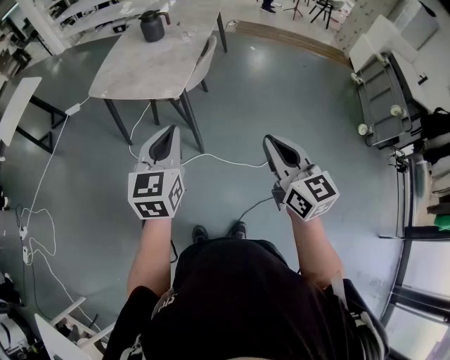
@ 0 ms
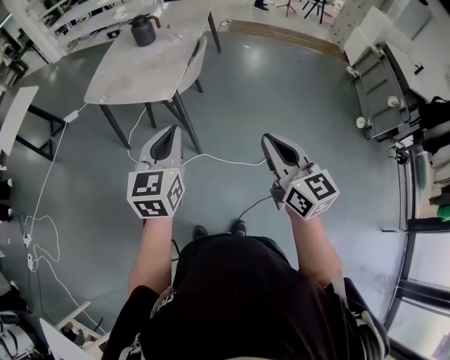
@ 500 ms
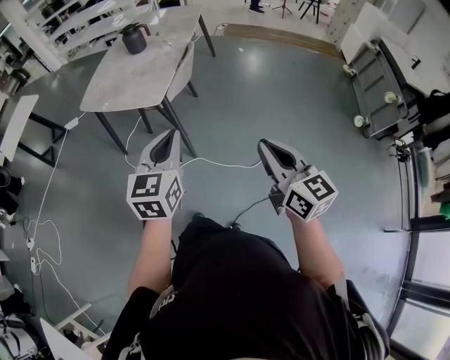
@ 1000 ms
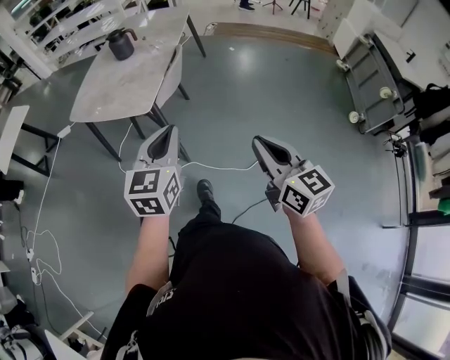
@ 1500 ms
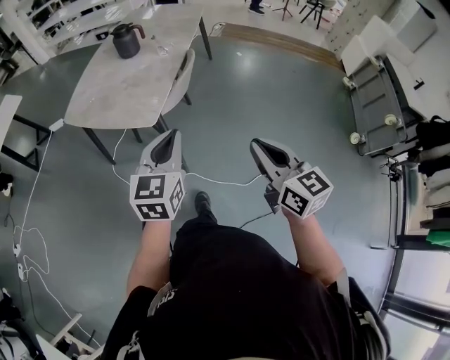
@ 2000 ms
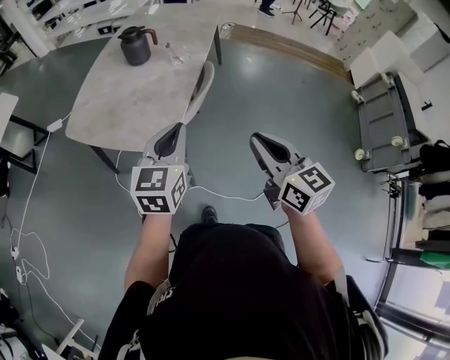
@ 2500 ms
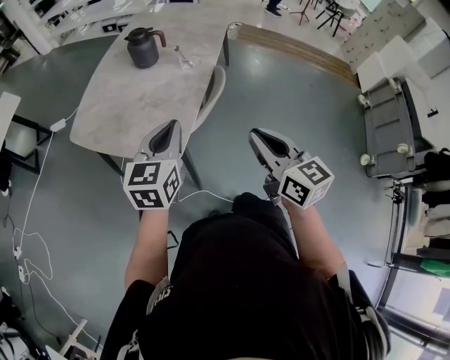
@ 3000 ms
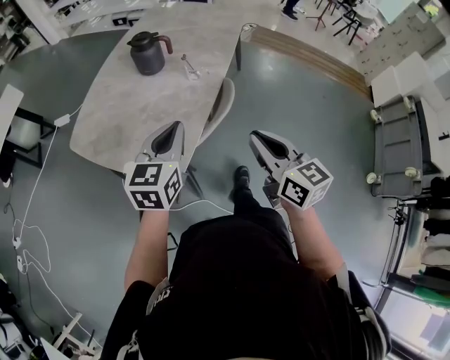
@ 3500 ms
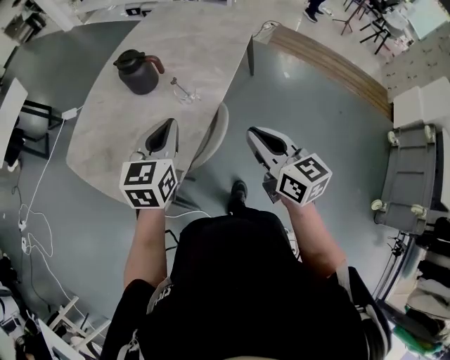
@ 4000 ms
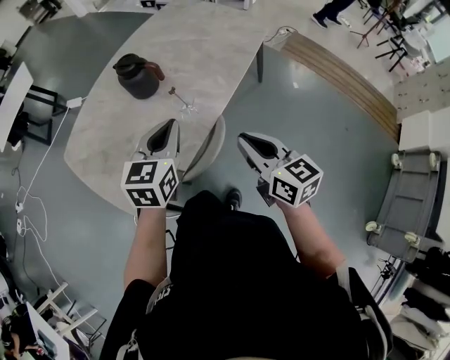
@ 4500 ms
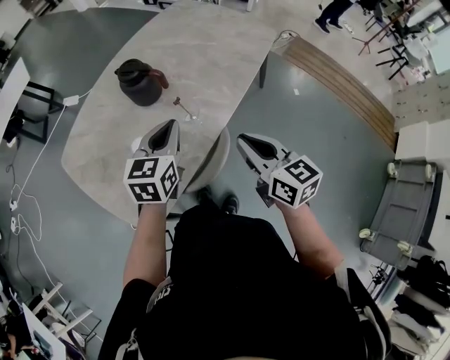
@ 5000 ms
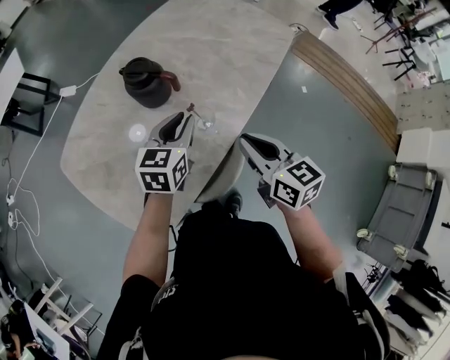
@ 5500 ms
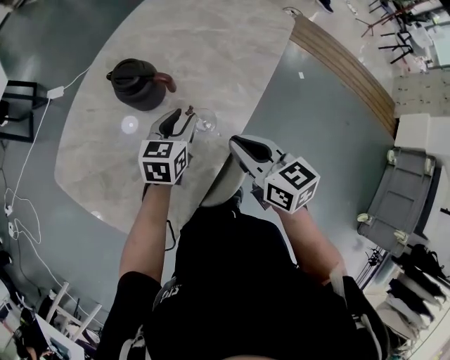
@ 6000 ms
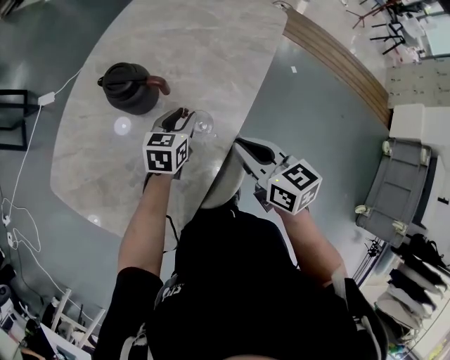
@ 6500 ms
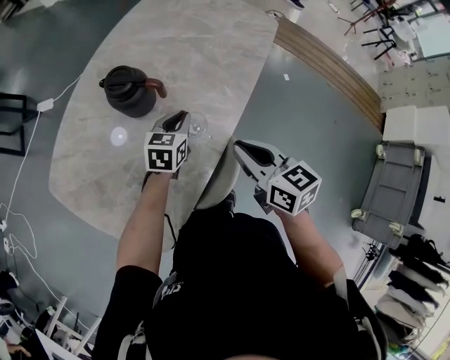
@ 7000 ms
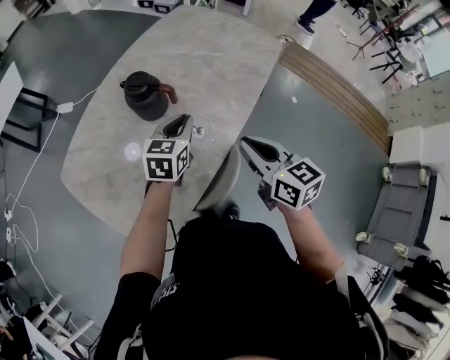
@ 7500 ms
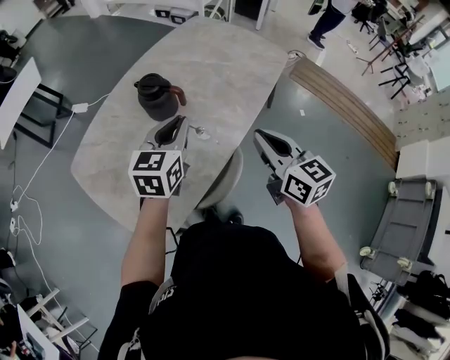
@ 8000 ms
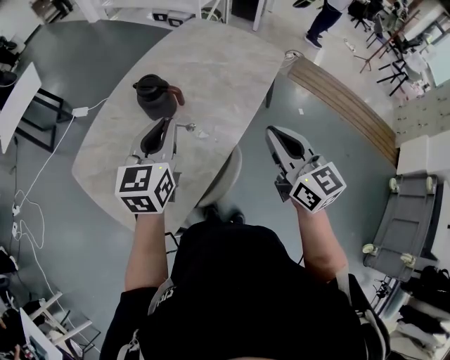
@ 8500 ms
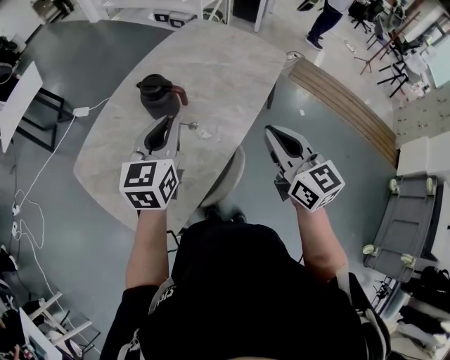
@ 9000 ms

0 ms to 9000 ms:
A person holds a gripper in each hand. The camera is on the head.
0 ms to 2000 ms: The two grippers go approximately 15 cm forward and to the right.
2000 ms to 4500 ms: Both grippers are carried forward, some 50 cm. The right gripper changes its angle by about 30 degrees. Meanwhile the left gripper turns by about 20 degrees.
4500 ms to 7000 ms: The right gripper goes some 15 cm forward and to the left. Meanwhile the left gripper heads forward and downward, covering some 25 cm, and opens, then closes again.
7000 ms to 9000 ms: The left gripper shifts some 25 cm upward and backward, and rotates roughly 30 degrees; the right gripper moves upward and to the right, approximately 15 cm, and swivels roughly 30 degrees.

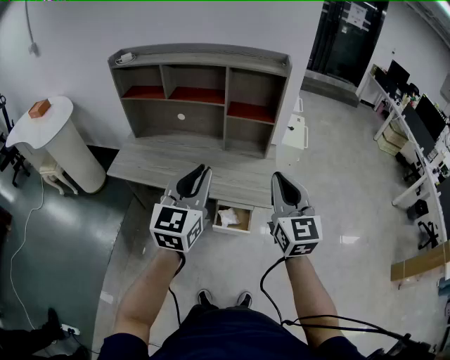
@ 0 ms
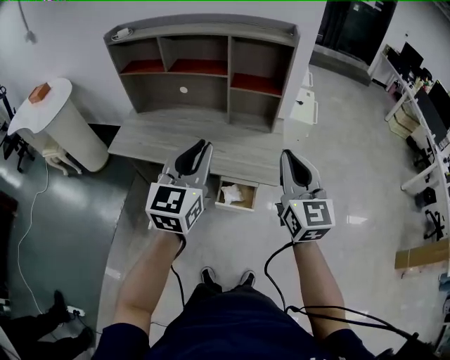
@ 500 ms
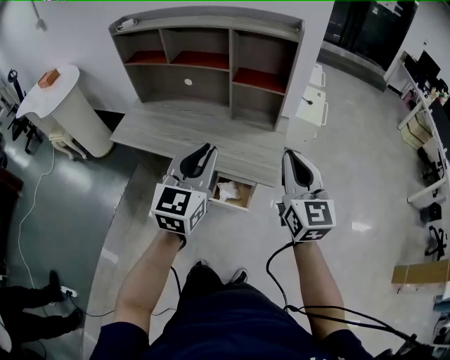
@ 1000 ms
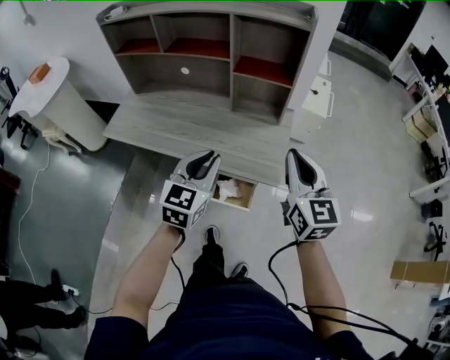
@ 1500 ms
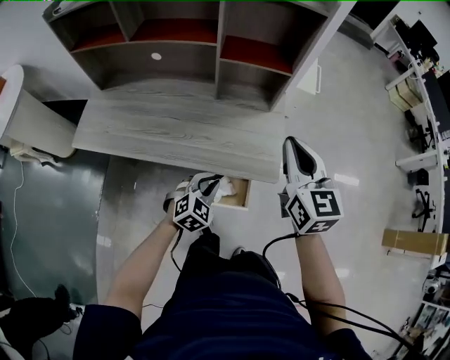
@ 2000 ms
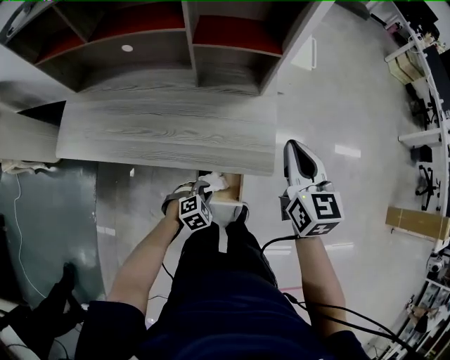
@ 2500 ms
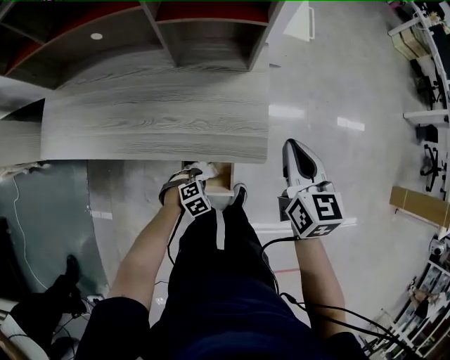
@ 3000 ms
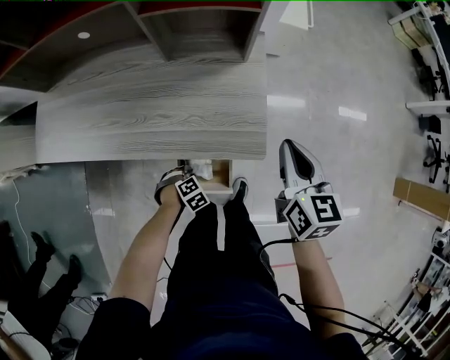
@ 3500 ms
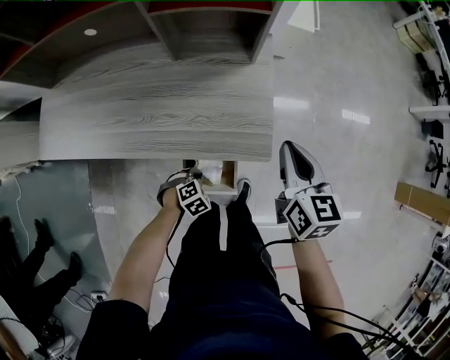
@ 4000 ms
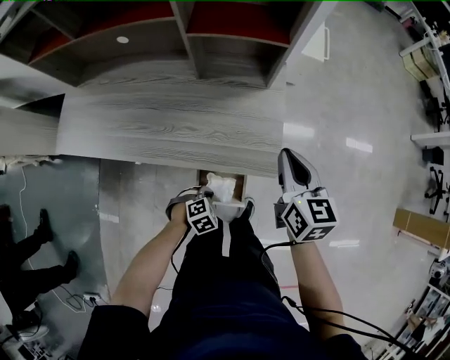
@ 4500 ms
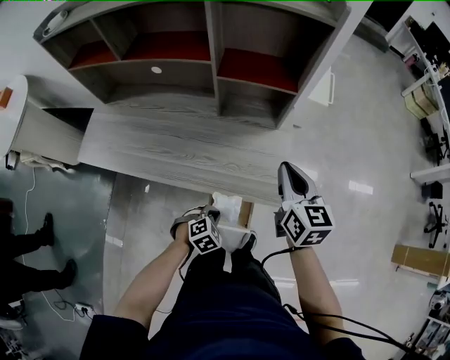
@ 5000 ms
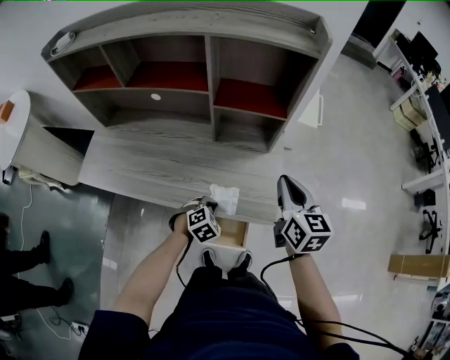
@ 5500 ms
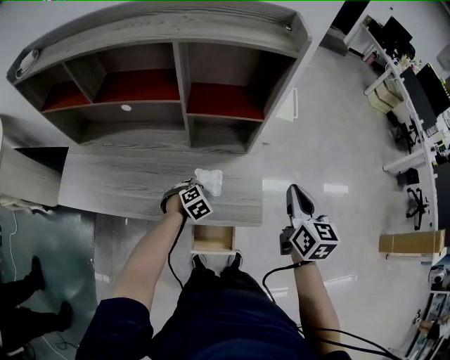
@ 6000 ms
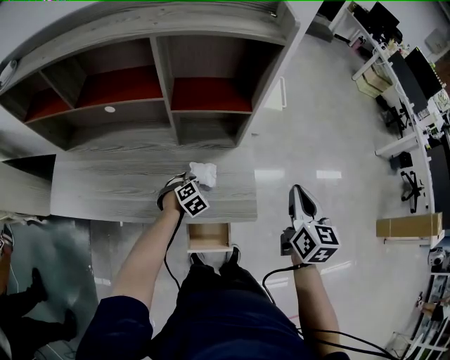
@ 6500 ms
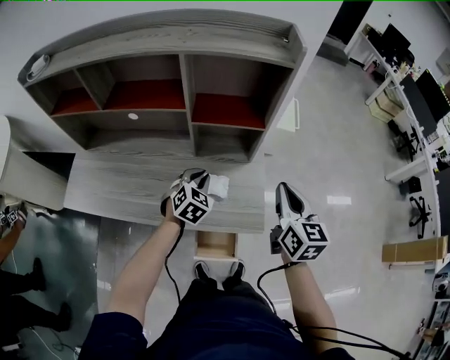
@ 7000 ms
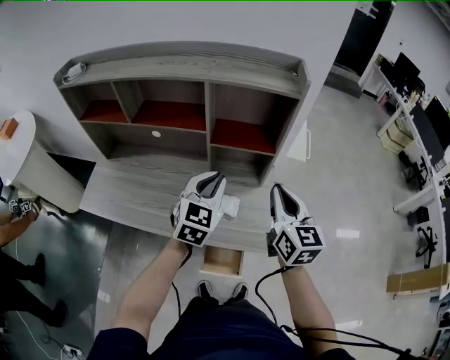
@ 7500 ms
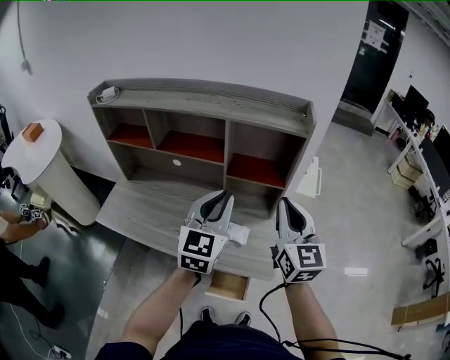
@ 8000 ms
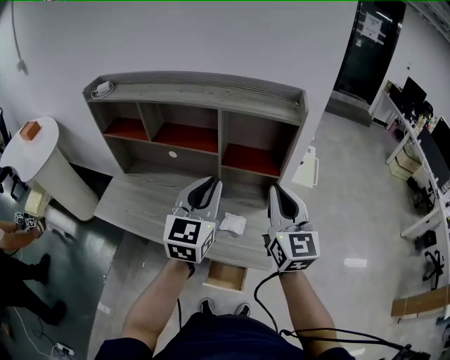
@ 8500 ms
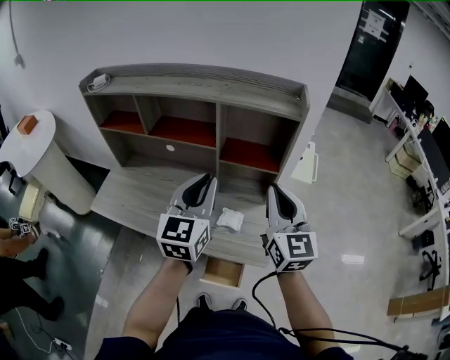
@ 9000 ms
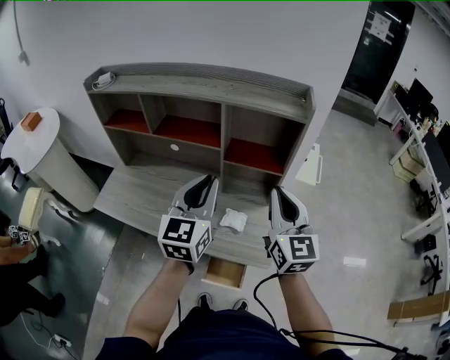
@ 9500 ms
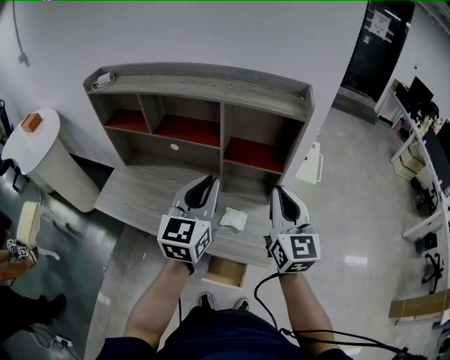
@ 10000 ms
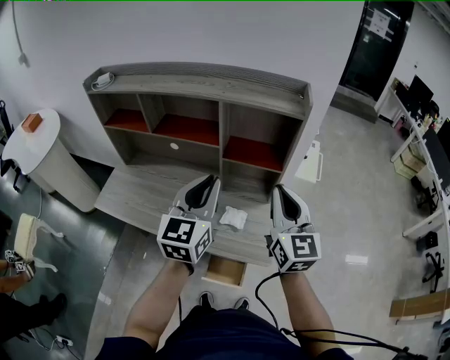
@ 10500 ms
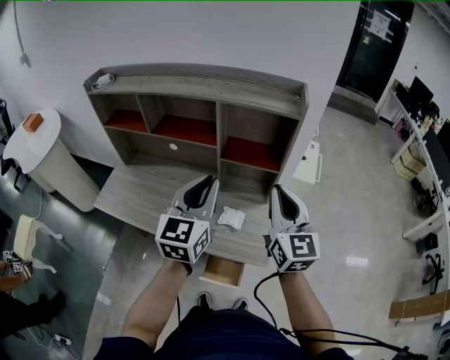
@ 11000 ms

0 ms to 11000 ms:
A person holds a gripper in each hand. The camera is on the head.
0 ms to 2000 ms: The left gripper travels downward by approximately 35 cm, and tilts its fingers about 40 degrees downward. The right gripper is displaced forward and downward by about 20 cm.
2000 ms to 3500 ms: The right gripper heads downward, covering approximately 15 cm, and turns by about 20 degrees. Meanwhile the left gripper goes roughly 25 cm downward, and points its fingers about 40 degrees further downward.
3500 ms to 5500 ms: The left gripper shifts roughly 20 cm upward, and turns by roughly 30 degrees. Meanwhile the right gripper travels upward by roughly 10 cm.
5500 ms to 7500 ms: The right gripper is displaced upward by about 10 cm, and reaches roughly 10 cm to the right, then returns. The left gripper goes approximately 30 cm upward, and tilts its fingers about 40 degrees upward.
7500 ms to 9000 ms: Both grippers travel together upward, about 10 cm. The left gripper rotates approximately 30 degrees.
9000 ms to 11000 ms: There are only small adjustments of the grippers.

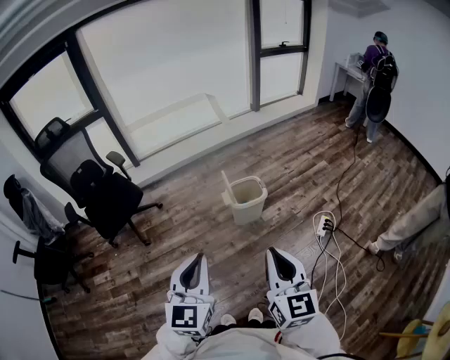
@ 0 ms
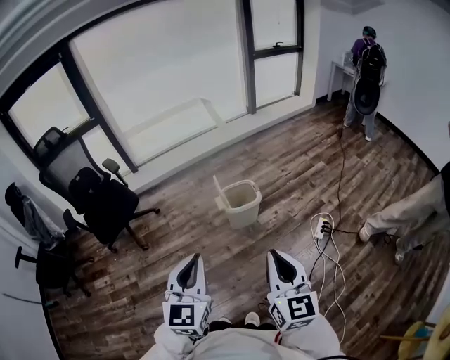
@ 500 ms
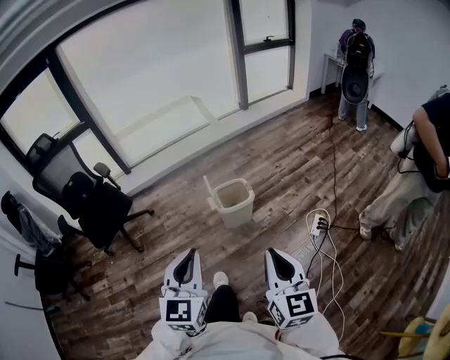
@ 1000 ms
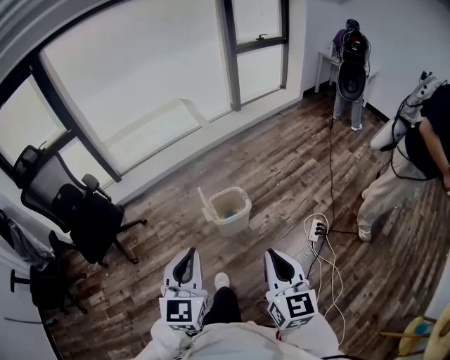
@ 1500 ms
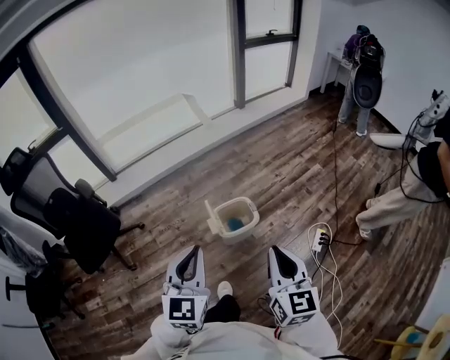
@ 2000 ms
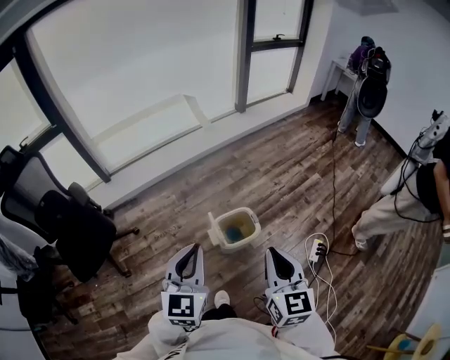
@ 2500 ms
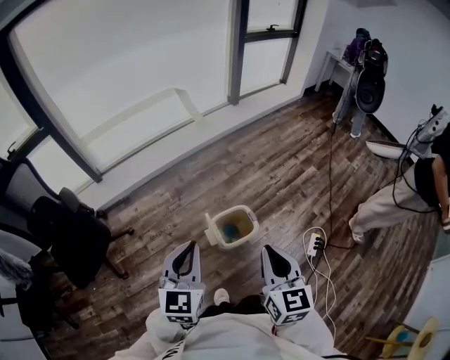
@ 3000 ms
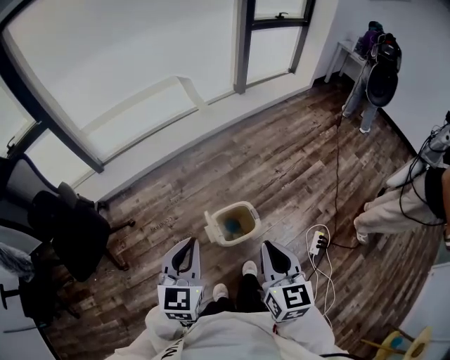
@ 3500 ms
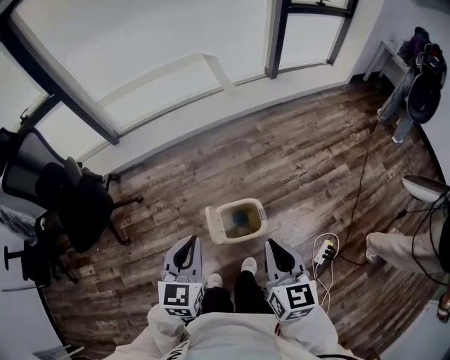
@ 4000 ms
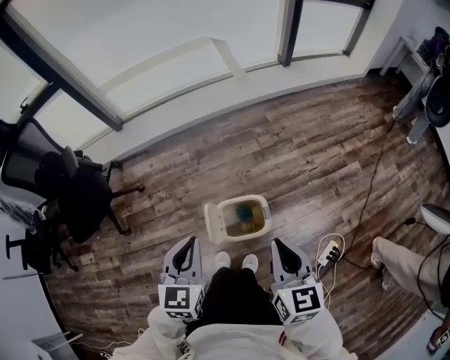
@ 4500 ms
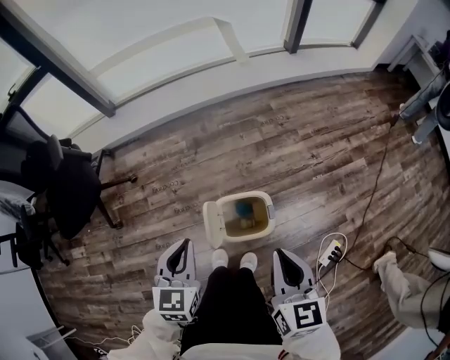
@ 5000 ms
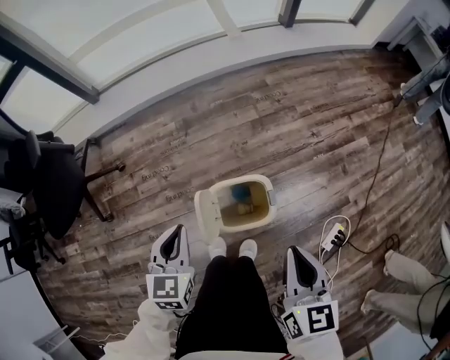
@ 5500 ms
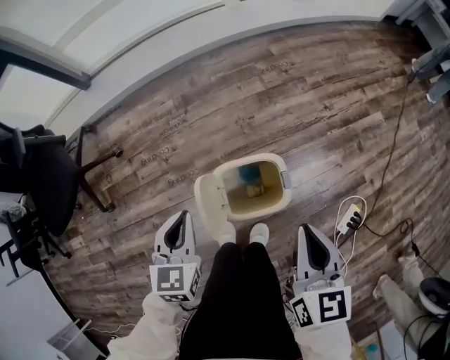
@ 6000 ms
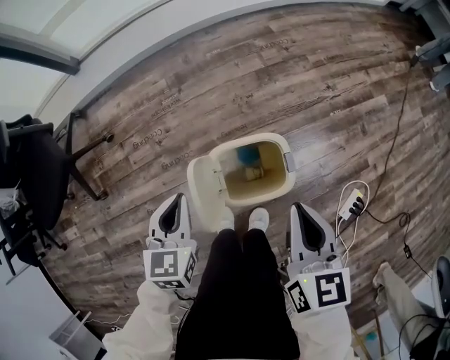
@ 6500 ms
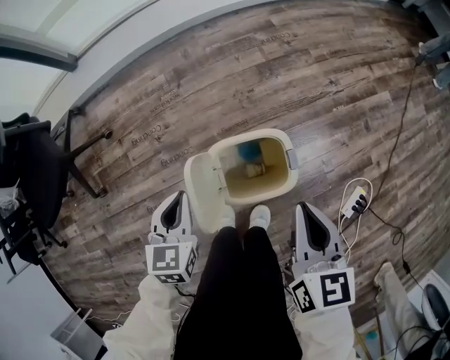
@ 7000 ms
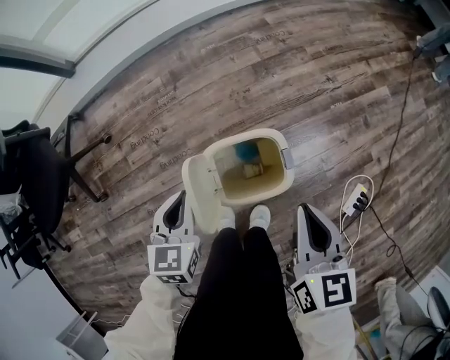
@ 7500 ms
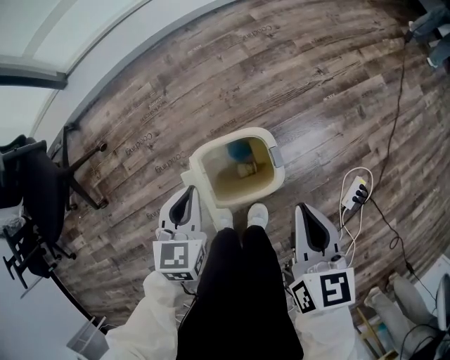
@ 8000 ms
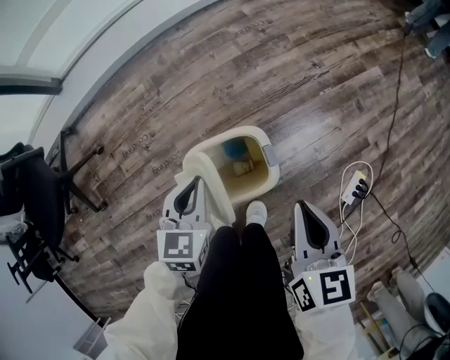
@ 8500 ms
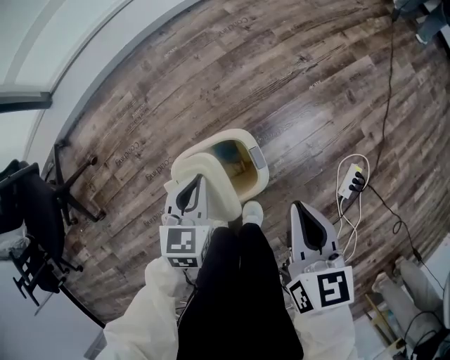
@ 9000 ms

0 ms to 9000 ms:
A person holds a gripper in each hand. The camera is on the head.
0 ms to 2000 ms: The grippers both shift forward by some 30 cm.
2000 ms to 4500 ms: Both grippers move forward and downward, roughly 35 cm. The right gripper turns by about 20 degrees; the left gripper rotates some 20 degrees.
4500 ms to 7000 ms: Both grippers travel together downward, approximately 30 cm.
7000 ms to 9000 ms: The right gripper moves to the right, approximately 10 cm, while the left gripper is displaced to the right and forward by some 20 cm.
